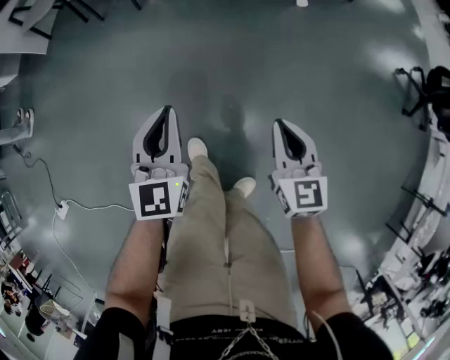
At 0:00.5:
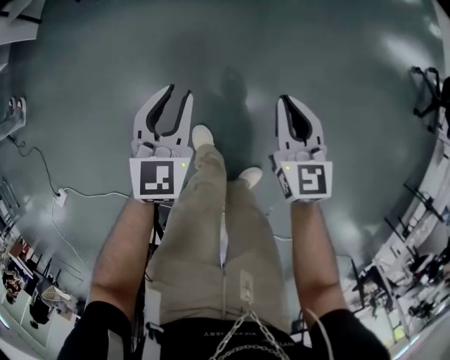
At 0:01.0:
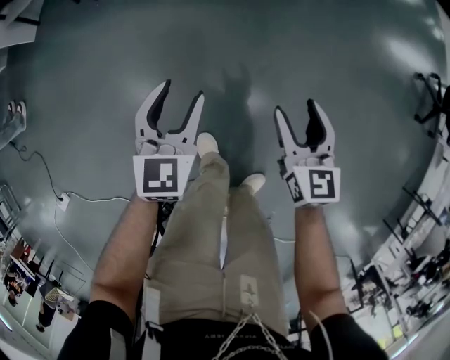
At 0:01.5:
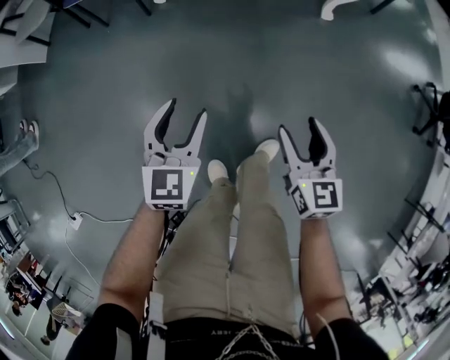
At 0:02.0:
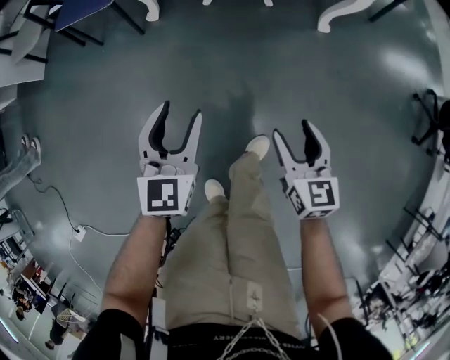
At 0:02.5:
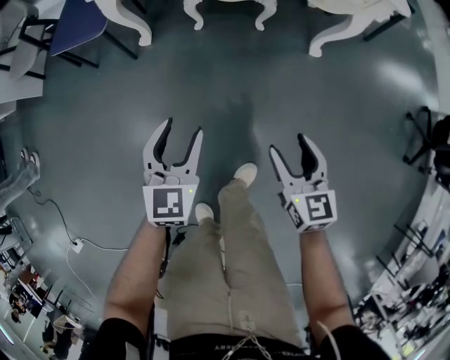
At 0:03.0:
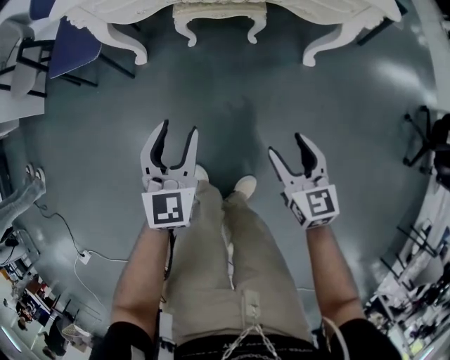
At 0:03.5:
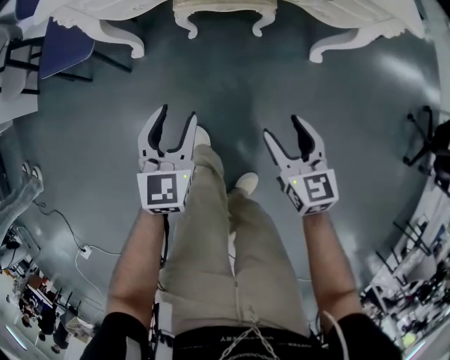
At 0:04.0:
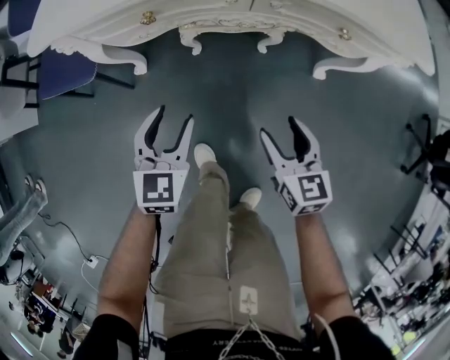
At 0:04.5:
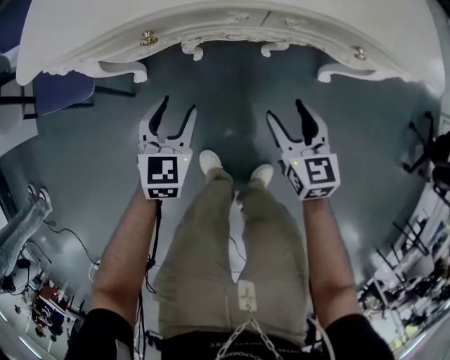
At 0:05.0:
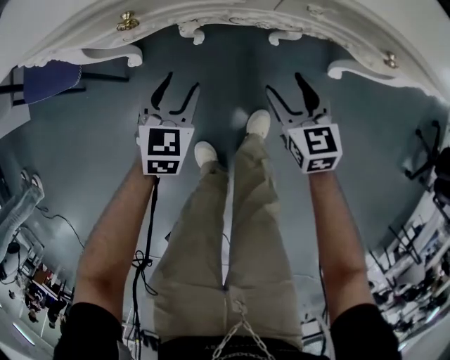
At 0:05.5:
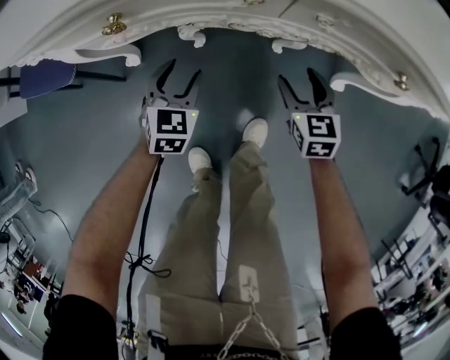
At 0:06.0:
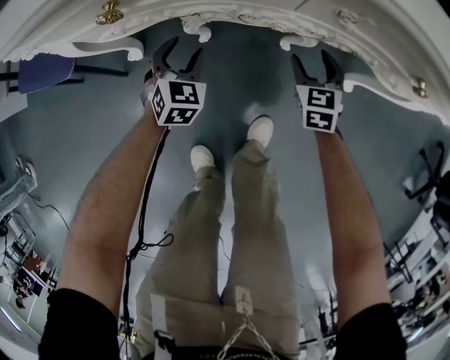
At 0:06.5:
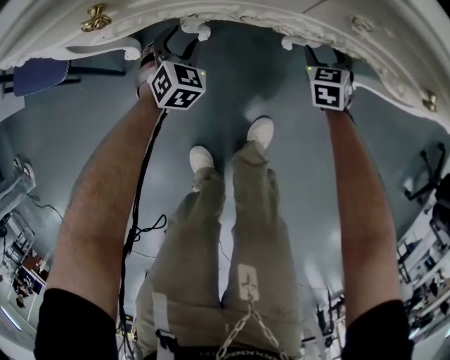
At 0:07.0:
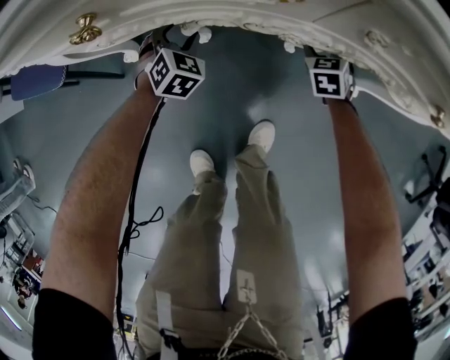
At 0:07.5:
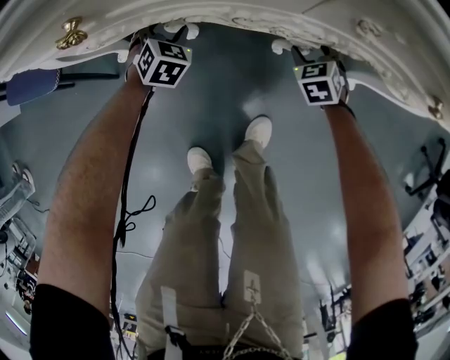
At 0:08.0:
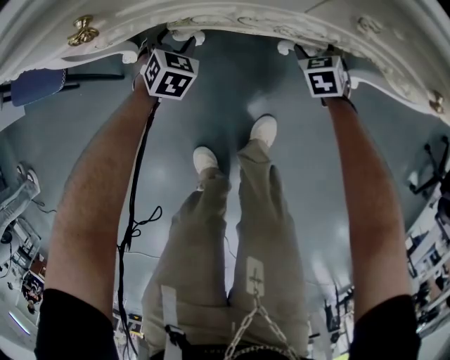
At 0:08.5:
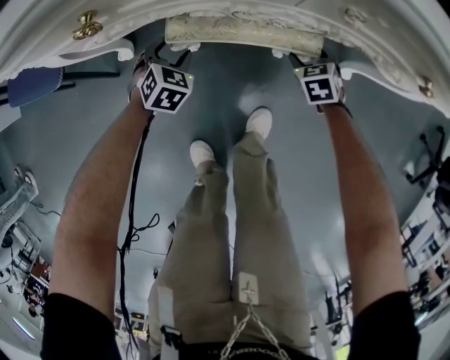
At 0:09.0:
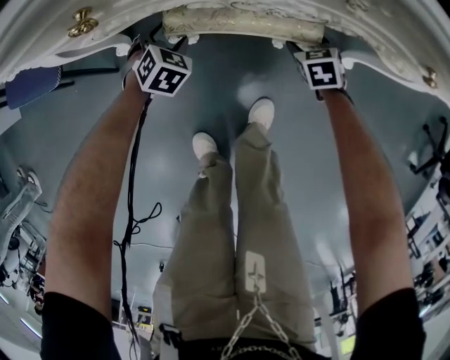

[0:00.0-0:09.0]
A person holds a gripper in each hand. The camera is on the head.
0:00.0 to 0:02.0: Both grippers travel together forward, some 30 cm. The right gripper opens, while the left gripper opens its fingers.
0:02.0 to 0:04.5: The two grippers travel together, forward, some 40 cm.
0:04.5 to 0:07.0: The two grippers go roughly 35 cm downward and forward. The left gripper changes its angle by some 30 degrees, while the right gripper changes its angle by some 30 degrees.
0:07.0 to 0:09.0: The right gripper moves backward, roughly 10 cm.

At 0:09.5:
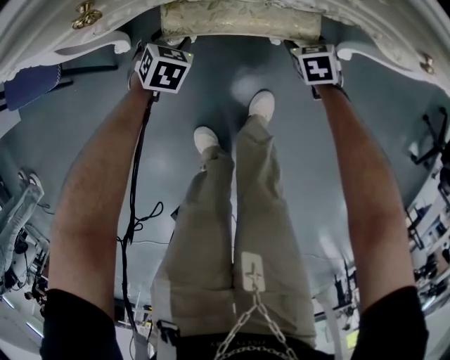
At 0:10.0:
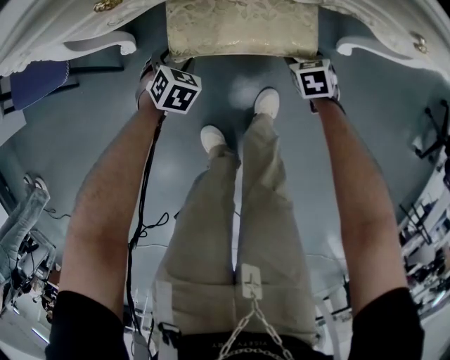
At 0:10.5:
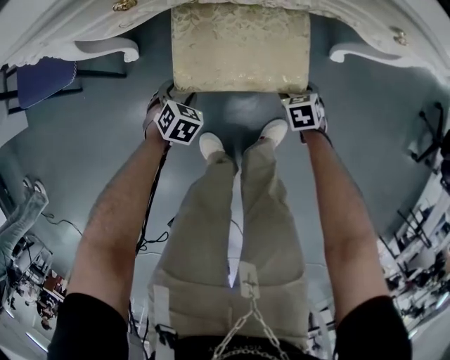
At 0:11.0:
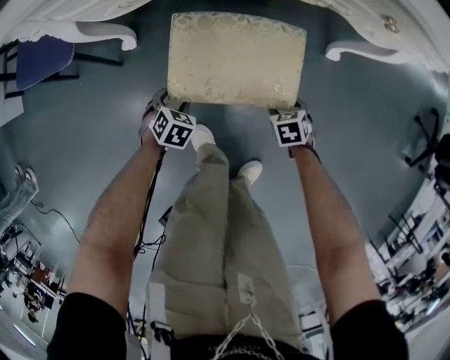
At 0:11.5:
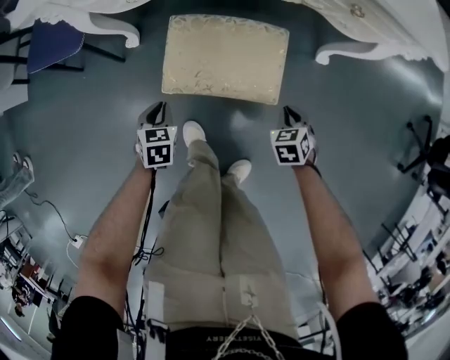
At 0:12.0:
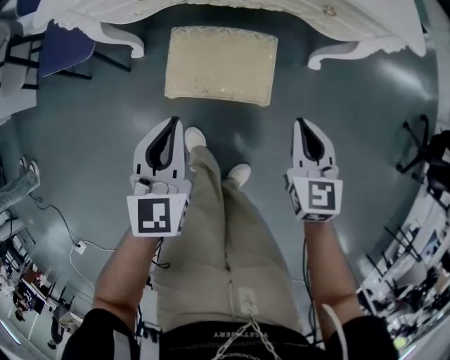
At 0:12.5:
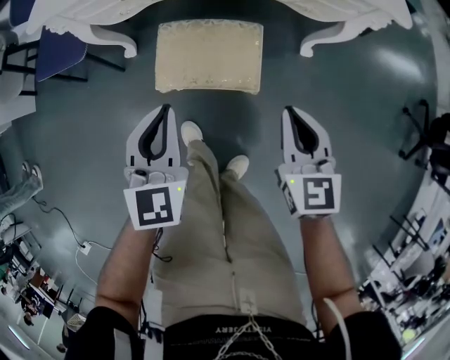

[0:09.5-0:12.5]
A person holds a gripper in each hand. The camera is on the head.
0:09.5 to 0:11.0: The right gripper ends up roughly 25 cm from where it was; the left gripper shifts by about 25 cm.
0:11.0 to 0:12.5: Both grippers move upward, about 40 cm. The right gripper tilts its fingers approximately 50 degrees upward, and closes up. The left gripper tips its fingers upward by approximately 50 degrees, and closes.

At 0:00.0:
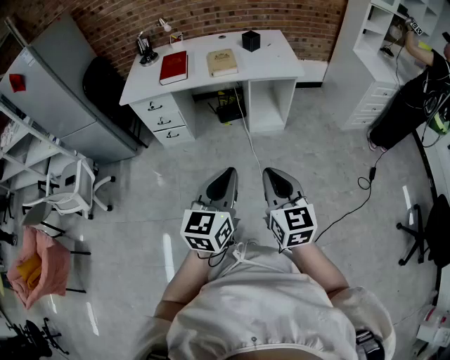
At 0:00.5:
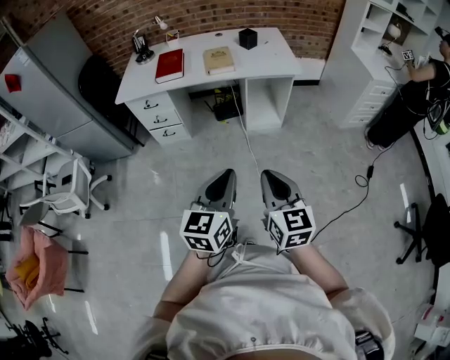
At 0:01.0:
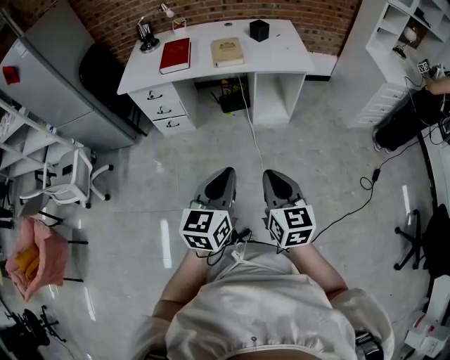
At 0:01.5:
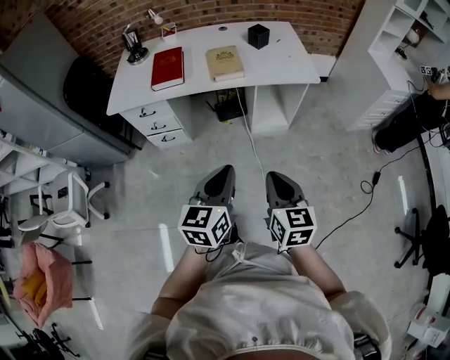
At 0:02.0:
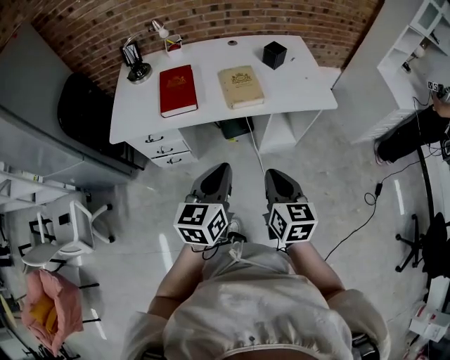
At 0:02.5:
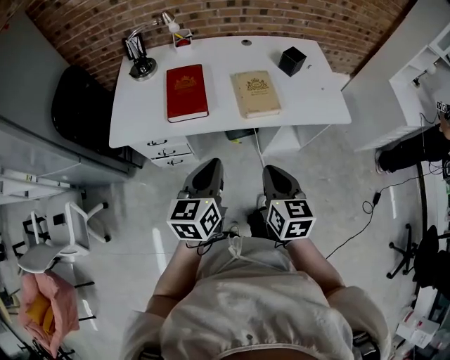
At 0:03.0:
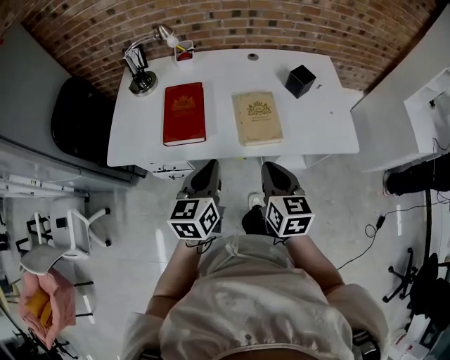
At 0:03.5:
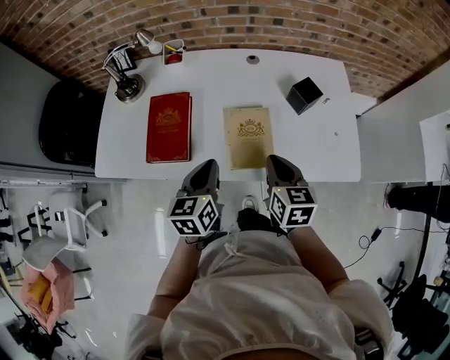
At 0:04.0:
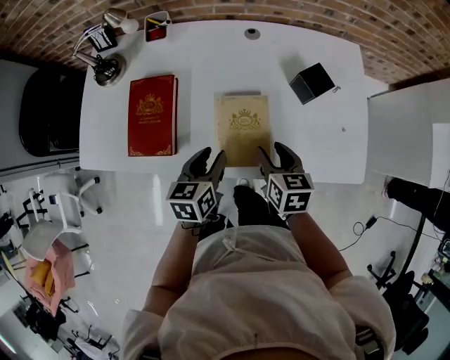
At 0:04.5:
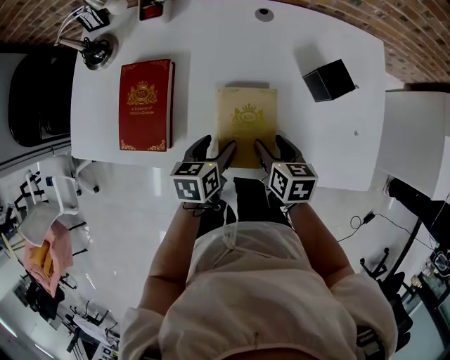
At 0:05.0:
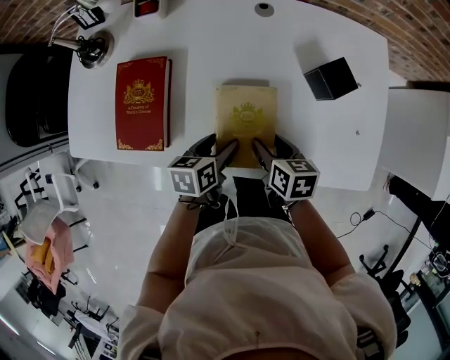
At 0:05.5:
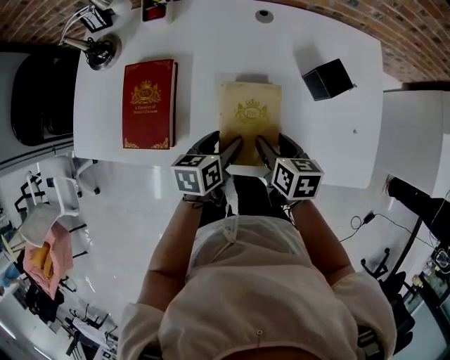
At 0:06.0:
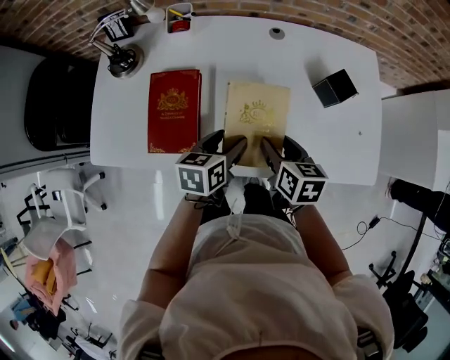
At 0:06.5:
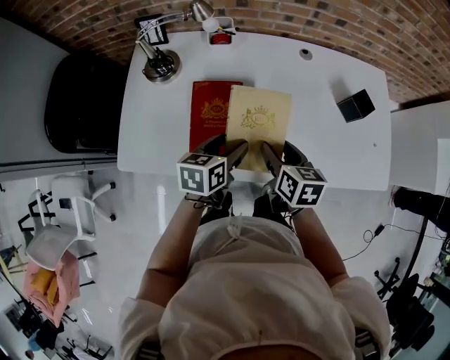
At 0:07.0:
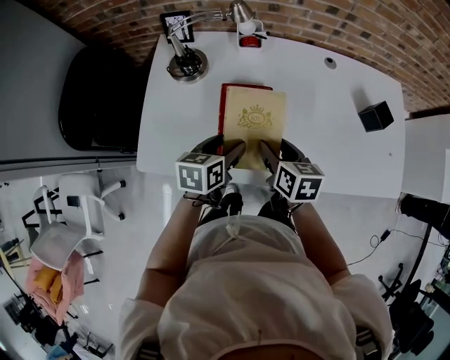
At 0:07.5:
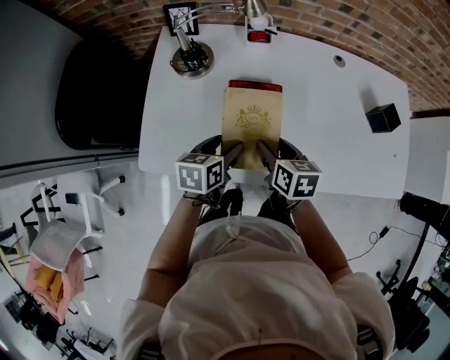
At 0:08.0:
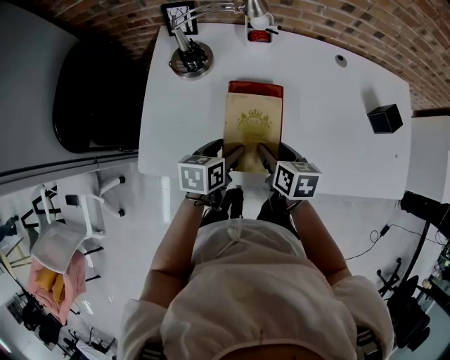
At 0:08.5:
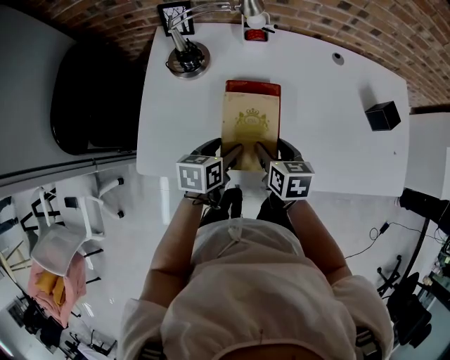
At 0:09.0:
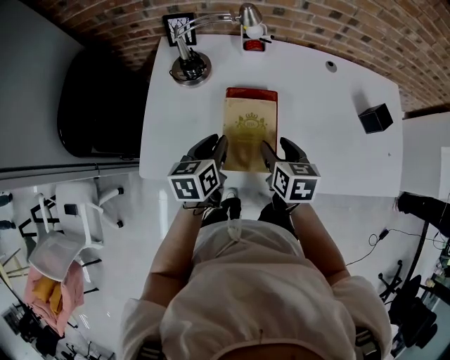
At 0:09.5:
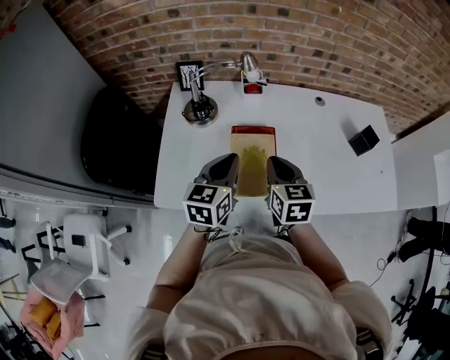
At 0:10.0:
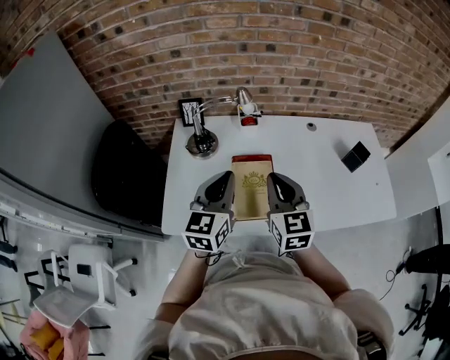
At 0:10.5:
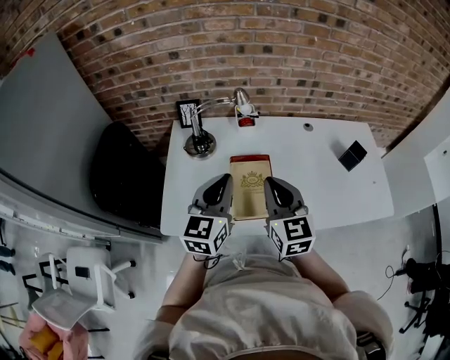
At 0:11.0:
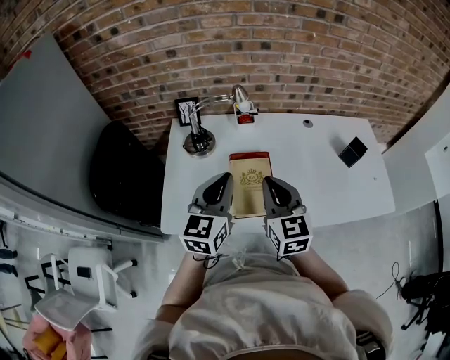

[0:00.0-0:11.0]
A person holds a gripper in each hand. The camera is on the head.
0:00.0 to 0:02.0: Both grippers move forward and to the left, some 35 cm.
0:02.0 to 0:03.5: The two grippers go about 35 cm forward.
0:03.5 to 0:05.5: The left gripper shifts approximately 20 cm downward, forward and to the right, swivels roughly 30 degrees, and opens. The right gripper is displaced downward and forward by about 15 cm, swivels roughly 20 degrees, and opens up.
0:05.5 to 0:07.5: The two grippers go roughly 30 cm to the left.
0:07.5 to 0:09.0: The left gripper changes place by roughly 5 cm, and closes.
0:09.0 to 0:11.0: Both grippers travel together upward, some 20 cm. The right gripper changes its angle by some 40 degrees, and closes. Meanwhile the left gripper changes its angle by approximately 40 degrees.

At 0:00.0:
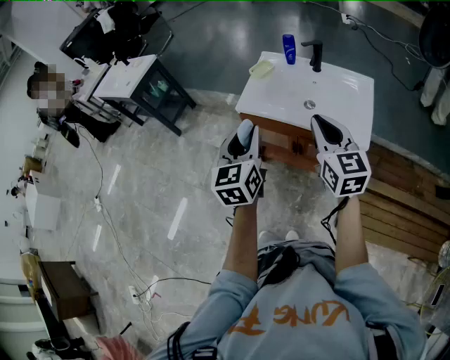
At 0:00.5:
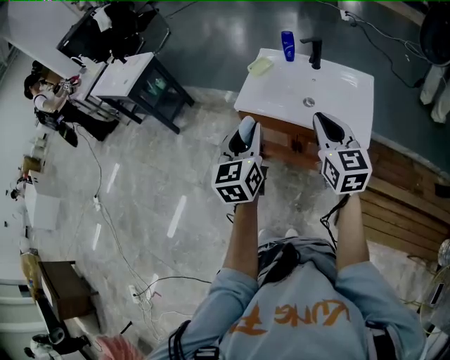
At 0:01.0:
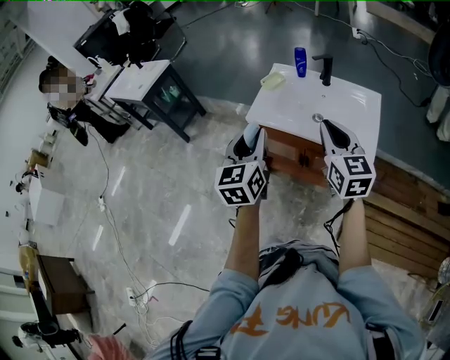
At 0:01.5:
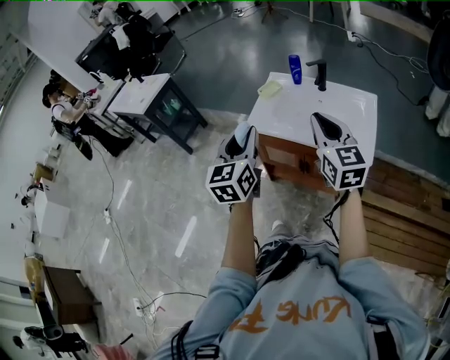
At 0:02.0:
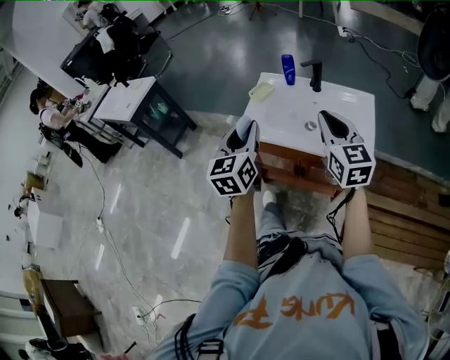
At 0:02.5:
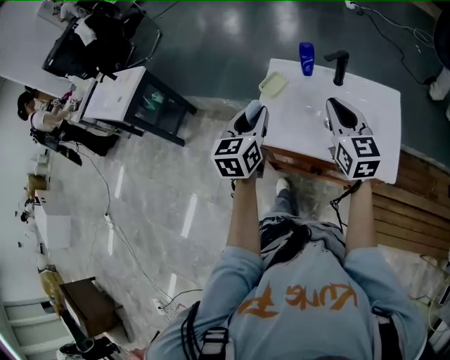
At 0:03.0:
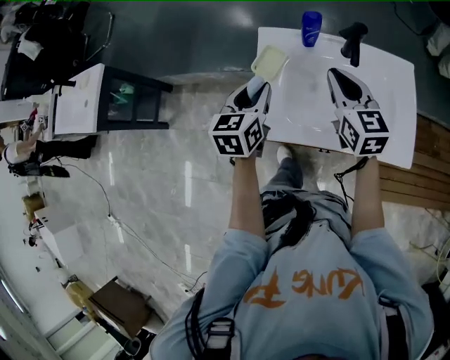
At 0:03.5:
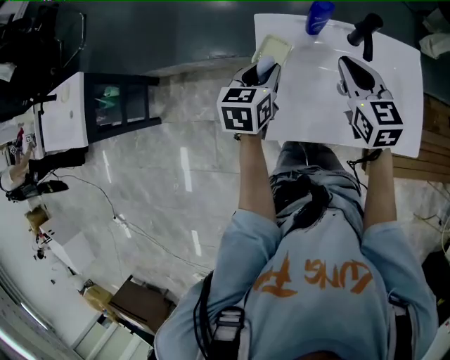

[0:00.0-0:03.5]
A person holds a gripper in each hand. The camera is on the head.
0:00.0 to 0:02.0: Both grippers travel together forward, roughly 10 cm.
0:02.0 to 0:03.5: The left gripper travels forward and downward by some 40 cm, and swivels some 40 degrees. The right gripper heads forward, downward and to the left, covering approximately 35 cm, and swivels approximately 30 degrees.
